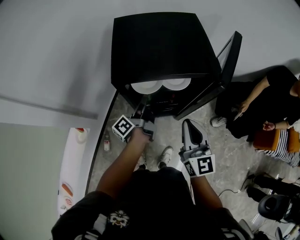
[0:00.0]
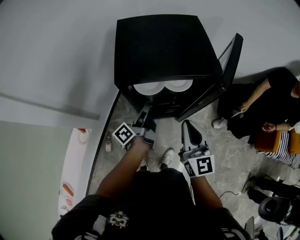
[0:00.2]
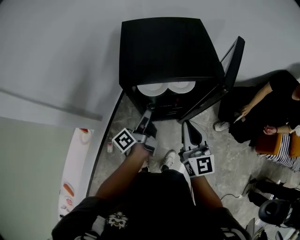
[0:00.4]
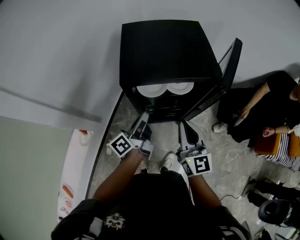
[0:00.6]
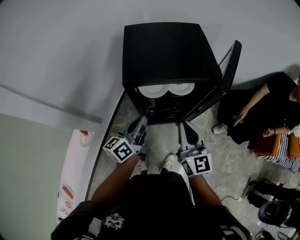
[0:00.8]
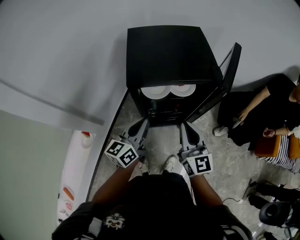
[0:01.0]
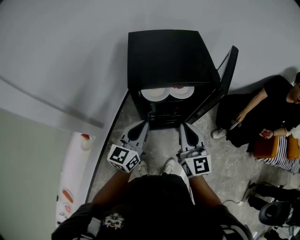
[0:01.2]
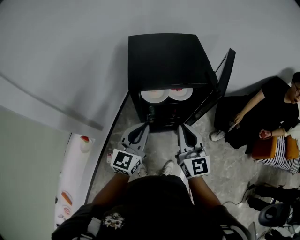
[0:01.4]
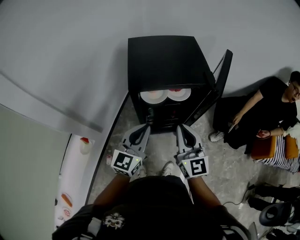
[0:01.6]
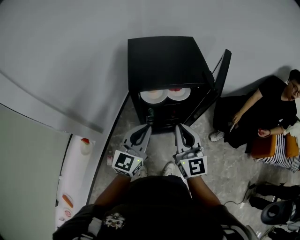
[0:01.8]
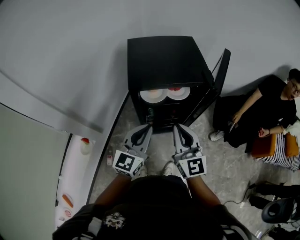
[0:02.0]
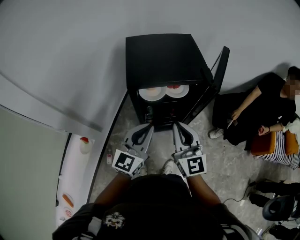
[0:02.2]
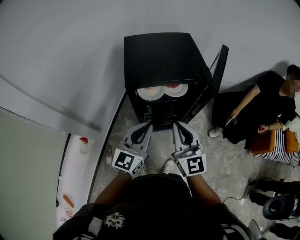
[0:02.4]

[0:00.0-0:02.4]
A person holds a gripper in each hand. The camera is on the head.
0:00.0 to 0:01.2: The left gripper is displaced upward and backward by roughly 15 cm, rotates around the line of its fingers by about 70 degrees, clockwise from behind, and closes its fingers, while the right gripper ends up approximately 5 cm from where it was.
0:01.2 to 0:02.4: The left gripper moves approximately 5 cm.

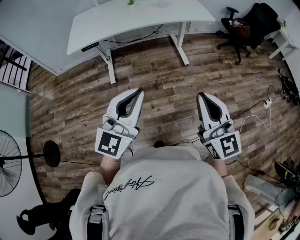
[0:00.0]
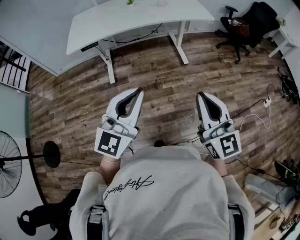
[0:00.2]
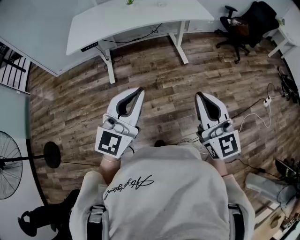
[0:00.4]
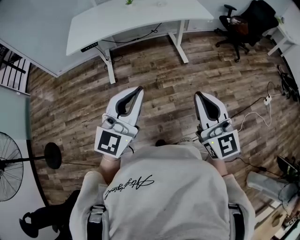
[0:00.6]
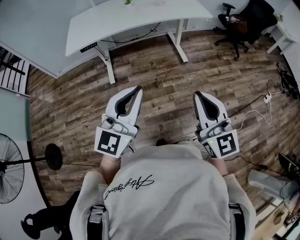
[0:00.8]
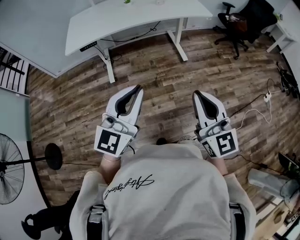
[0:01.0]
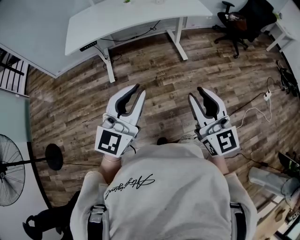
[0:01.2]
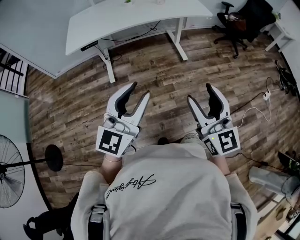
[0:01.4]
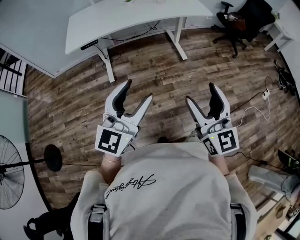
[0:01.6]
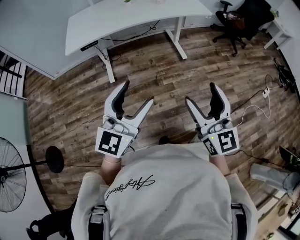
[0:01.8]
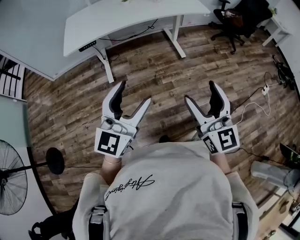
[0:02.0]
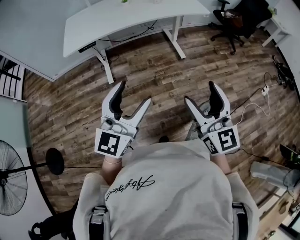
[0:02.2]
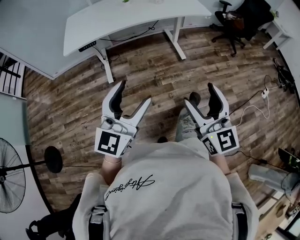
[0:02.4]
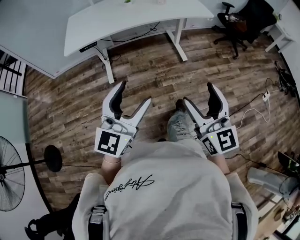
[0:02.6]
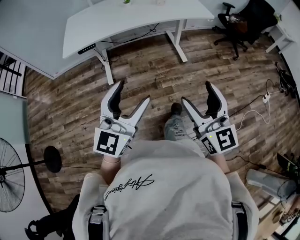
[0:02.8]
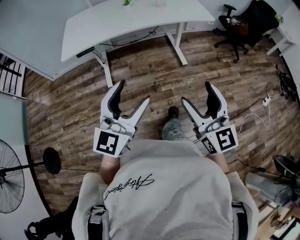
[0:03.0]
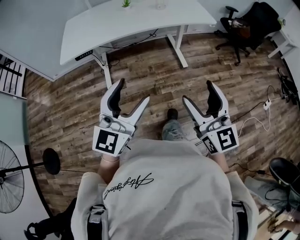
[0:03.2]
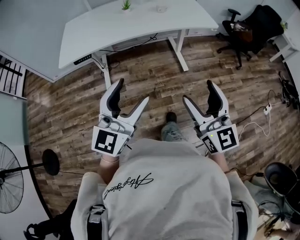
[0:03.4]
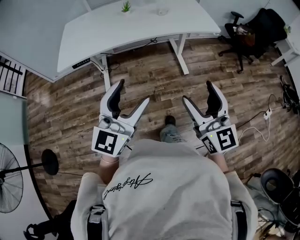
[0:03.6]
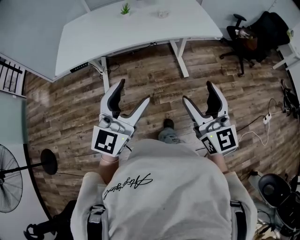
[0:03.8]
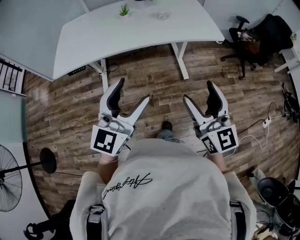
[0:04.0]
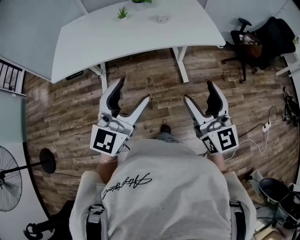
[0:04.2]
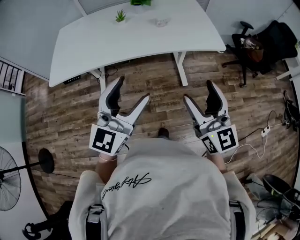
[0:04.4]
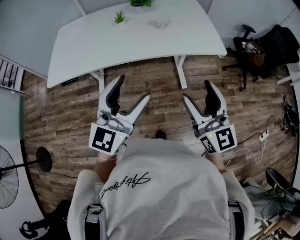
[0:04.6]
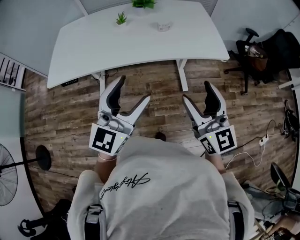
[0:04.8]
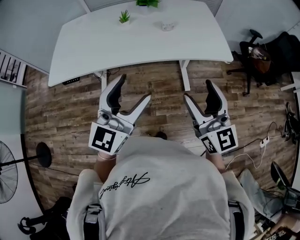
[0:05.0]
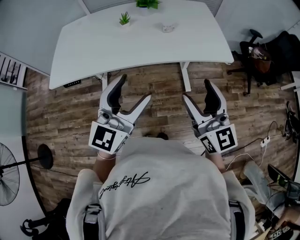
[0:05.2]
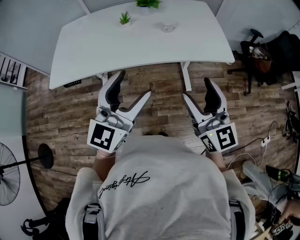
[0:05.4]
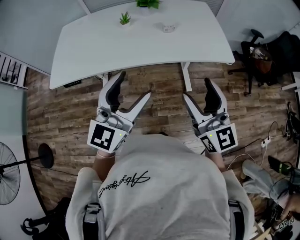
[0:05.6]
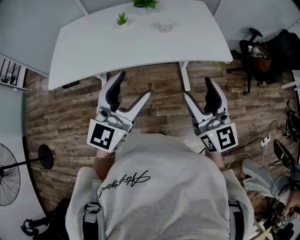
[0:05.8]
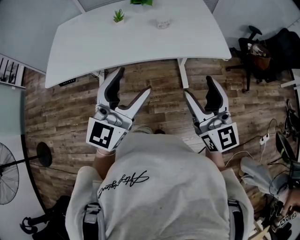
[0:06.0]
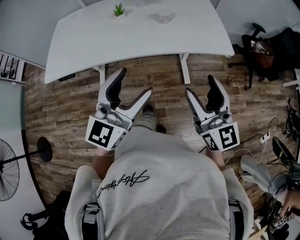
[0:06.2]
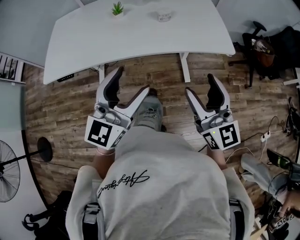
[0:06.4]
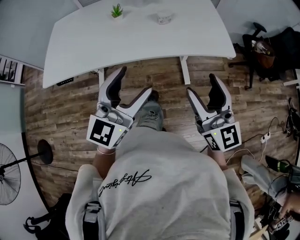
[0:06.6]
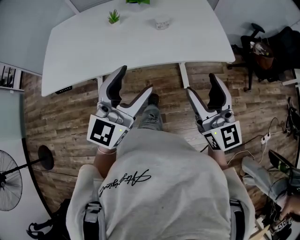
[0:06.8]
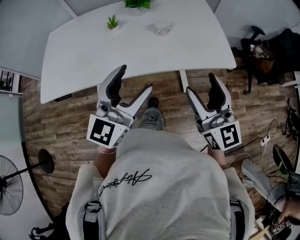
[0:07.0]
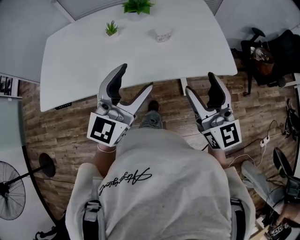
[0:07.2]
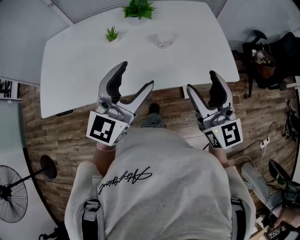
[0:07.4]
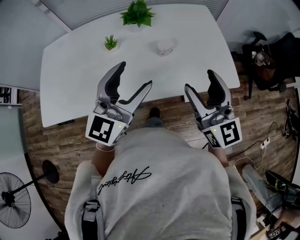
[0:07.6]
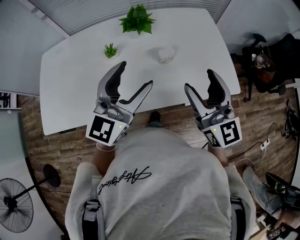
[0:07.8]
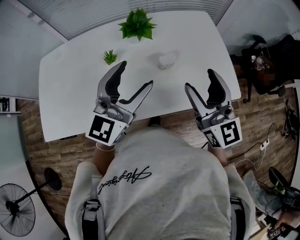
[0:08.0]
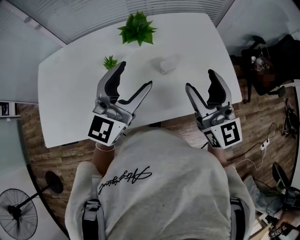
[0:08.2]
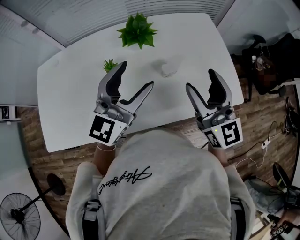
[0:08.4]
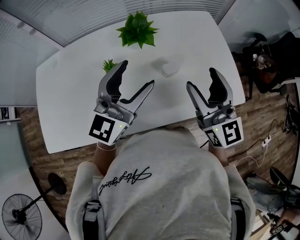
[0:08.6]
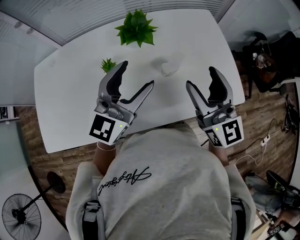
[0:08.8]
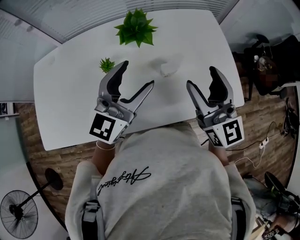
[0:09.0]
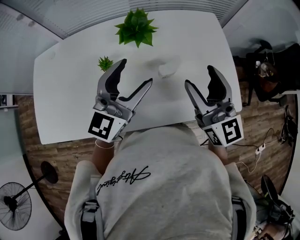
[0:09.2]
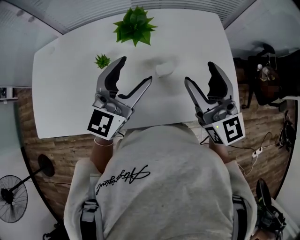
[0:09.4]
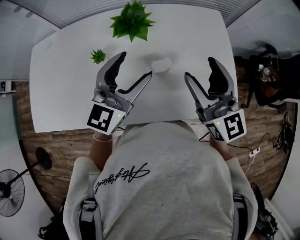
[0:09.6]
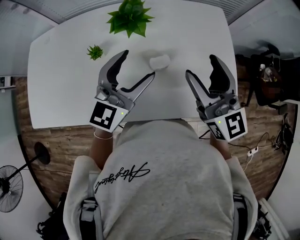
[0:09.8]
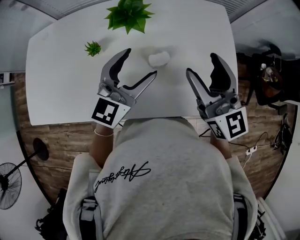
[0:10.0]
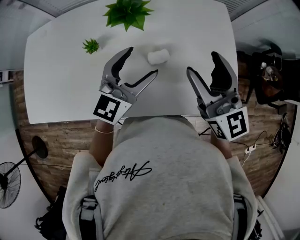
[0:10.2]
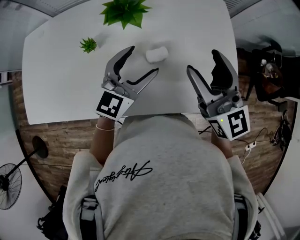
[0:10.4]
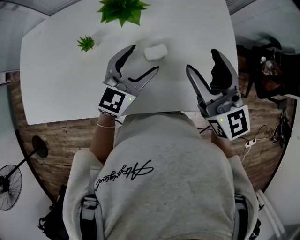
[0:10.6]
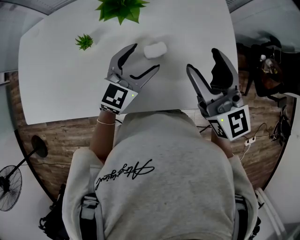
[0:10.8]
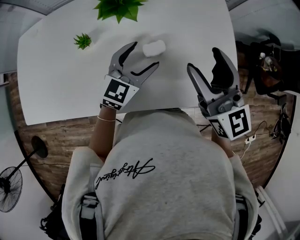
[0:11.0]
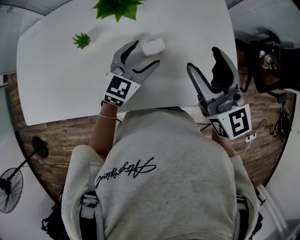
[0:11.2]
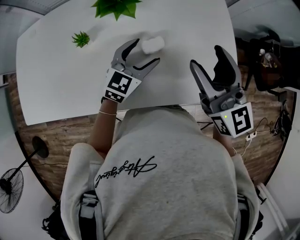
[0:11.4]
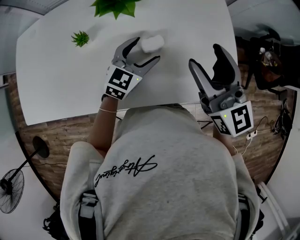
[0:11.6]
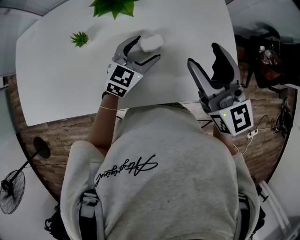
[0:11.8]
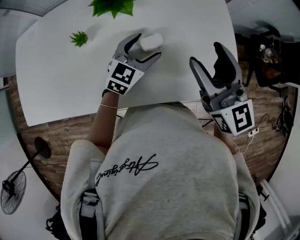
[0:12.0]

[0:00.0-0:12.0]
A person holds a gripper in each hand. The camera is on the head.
0:00.0 to 0:01.6: The left gripper opens its fingers; the right gripper opens.
0:01.6 to 0:03.0: The grippers both shift forward by some 5 cm.
0:03.0 to 0:04.4: The two grippers go approximately 25 cm forward.
0:04.4 to 0:06.0: The grippers both shift forward by about 10 cm.
0:06.0 to 0:07.6: Both grippers move forward, about 20 cm.
0:07.6 to 0:09.0: Both grippers travel together forward, roughly 10 cm.
0:09.0 to 0:10.4: The left gripper moves downward and to the right, about 10 cm. Meanwhile the right gripper changes place by about 5 cm.
0:10.4 to 0:12.0: The left gripper moves downward, approximately 10 cm.

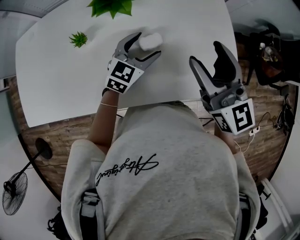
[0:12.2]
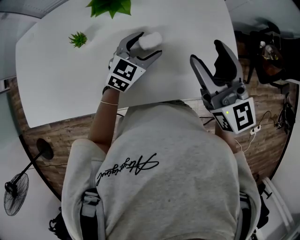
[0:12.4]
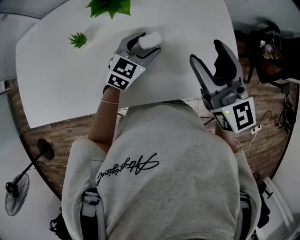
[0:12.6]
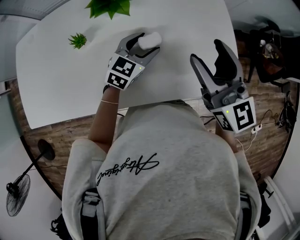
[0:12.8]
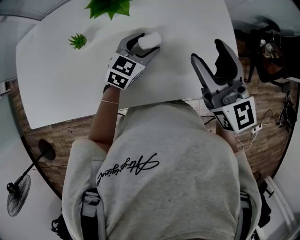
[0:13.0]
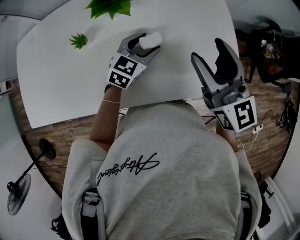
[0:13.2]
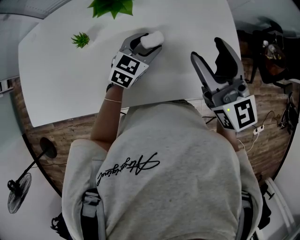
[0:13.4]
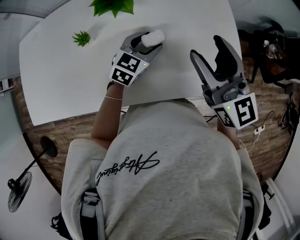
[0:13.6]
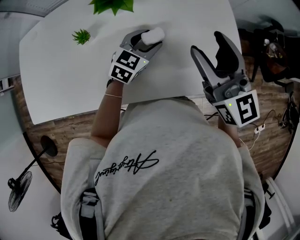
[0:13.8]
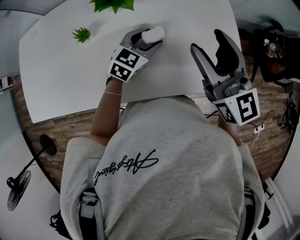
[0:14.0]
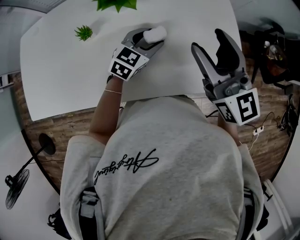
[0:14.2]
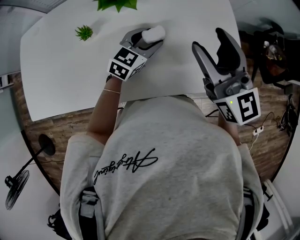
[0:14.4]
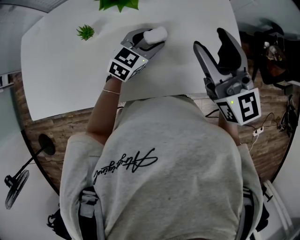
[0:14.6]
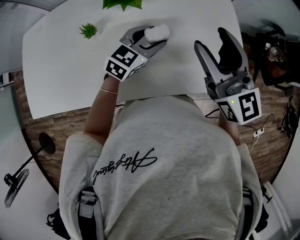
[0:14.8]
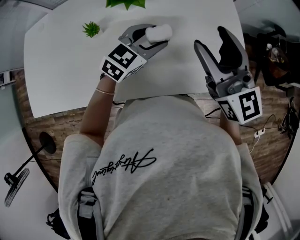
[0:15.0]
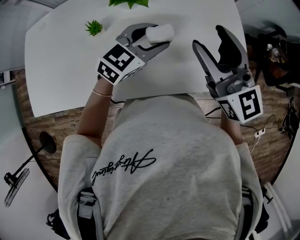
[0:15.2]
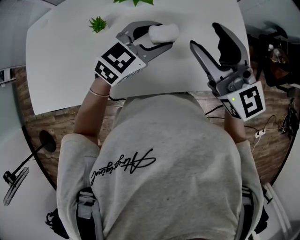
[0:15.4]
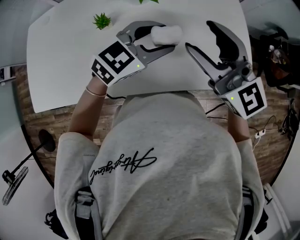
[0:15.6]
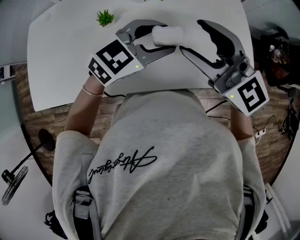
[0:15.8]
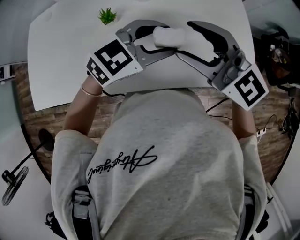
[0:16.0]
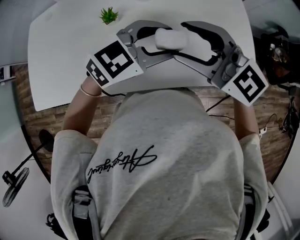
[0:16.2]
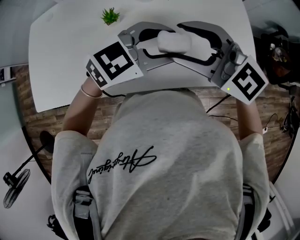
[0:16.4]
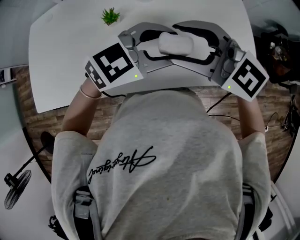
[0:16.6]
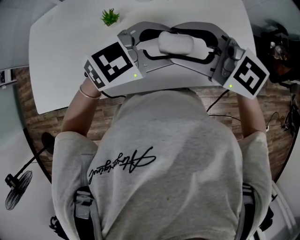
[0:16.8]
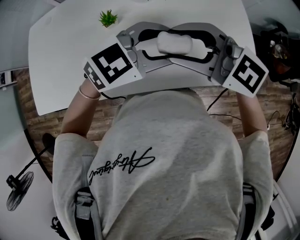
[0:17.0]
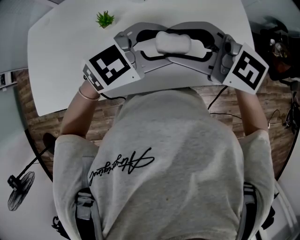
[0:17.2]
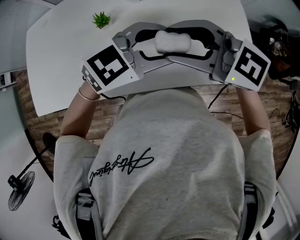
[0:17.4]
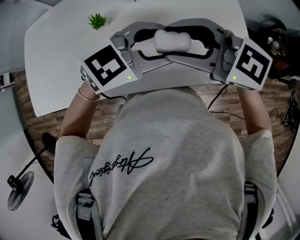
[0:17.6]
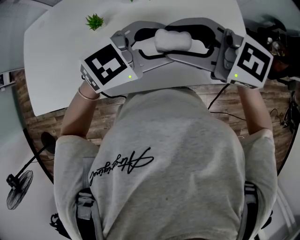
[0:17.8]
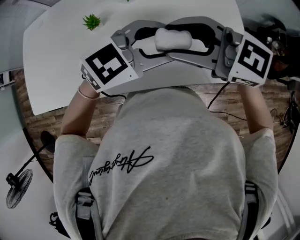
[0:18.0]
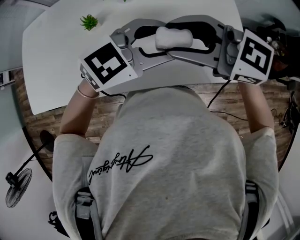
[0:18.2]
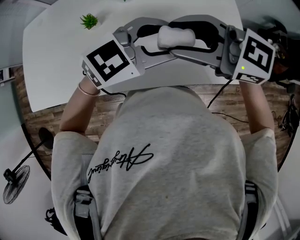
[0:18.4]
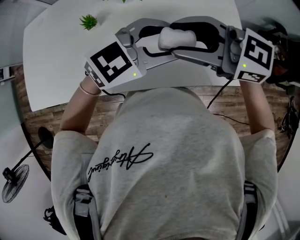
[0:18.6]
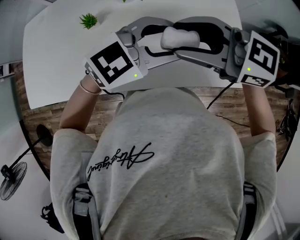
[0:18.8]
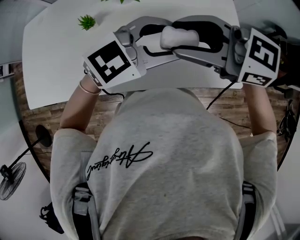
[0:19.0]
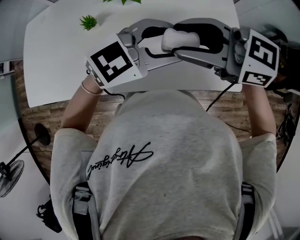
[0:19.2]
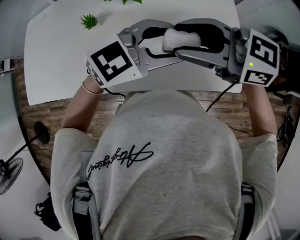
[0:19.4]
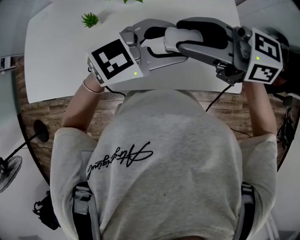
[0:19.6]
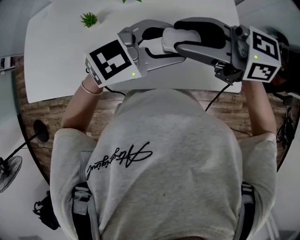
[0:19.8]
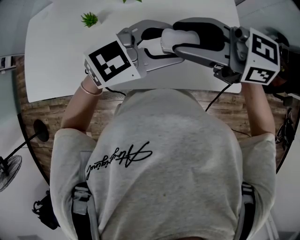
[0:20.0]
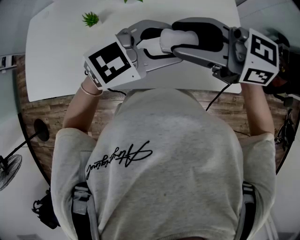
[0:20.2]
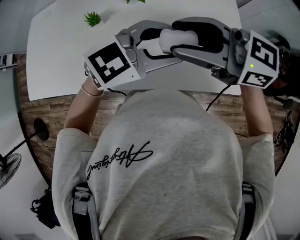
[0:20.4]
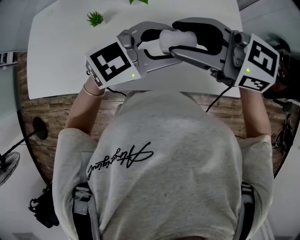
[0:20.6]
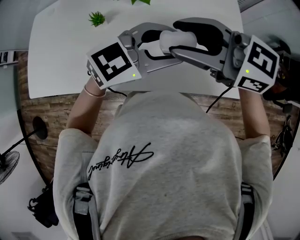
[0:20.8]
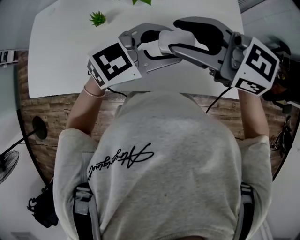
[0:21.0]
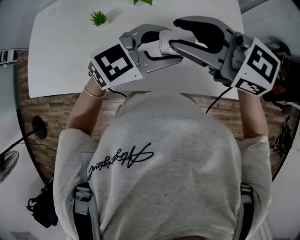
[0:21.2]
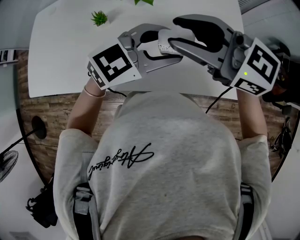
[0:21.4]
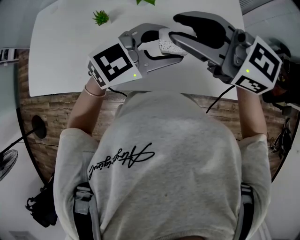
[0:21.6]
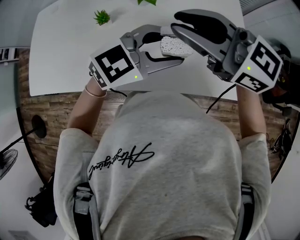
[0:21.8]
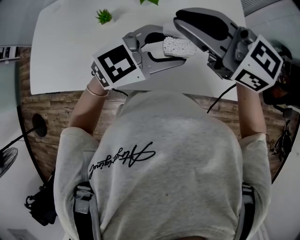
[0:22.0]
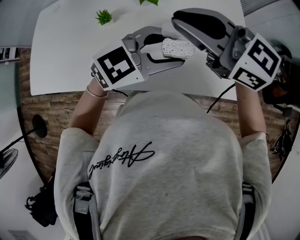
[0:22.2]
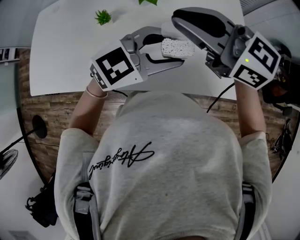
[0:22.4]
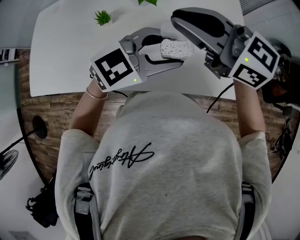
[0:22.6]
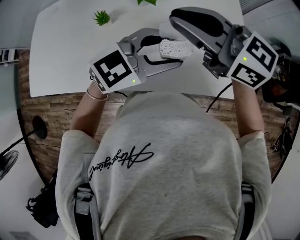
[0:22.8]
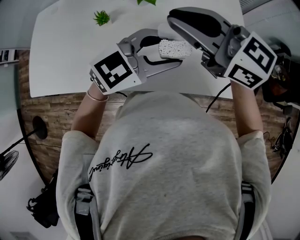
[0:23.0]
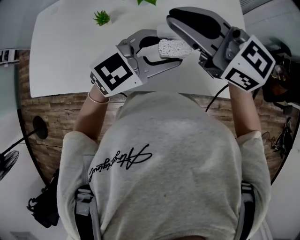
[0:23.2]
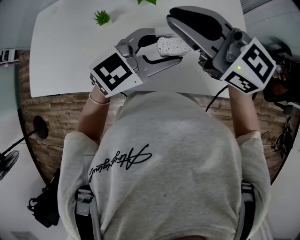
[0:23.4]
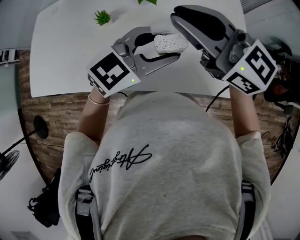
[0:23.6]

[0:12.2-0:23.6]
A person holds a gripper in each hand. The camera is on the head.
0:12.2 to 0:13.6: The grippers make only small movements.
0:13.6 to 0:15.0: The left gripper is displaced upward by roughly 5 cm.
0:15.0 to 0:16.4: The right gripper moves about 15 cm, and rotates roughly 40 degrees. Meanwhile the left gripper changes place by about 10 cm.
0:16.4 to 0:17.8: The grippers move only a little.
0:17.8 to 0:19.4: The right gripper shifts by some 5 cm. The left gripper moves approximately 5 cm.
0:19.4 to 0:20.8: There are only small adjustments of the grippers.
0:20.8 to 0:22.2: The right gripper ends up roughly 5 cm from where it was, and closes its fingers.
0:22.2 to 0:23.6: The grippers make only small movements.
